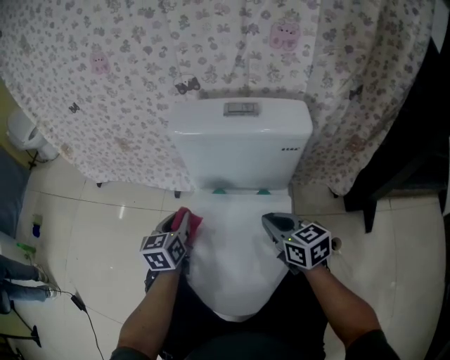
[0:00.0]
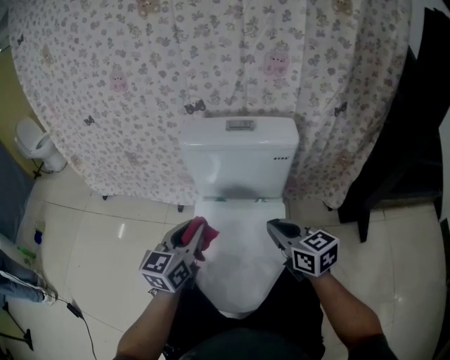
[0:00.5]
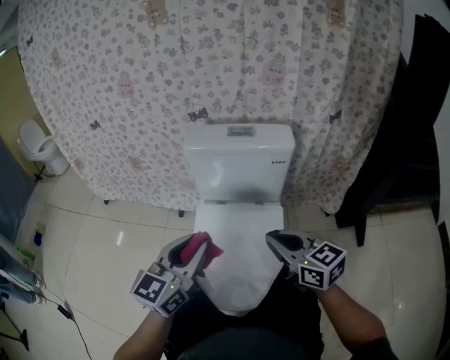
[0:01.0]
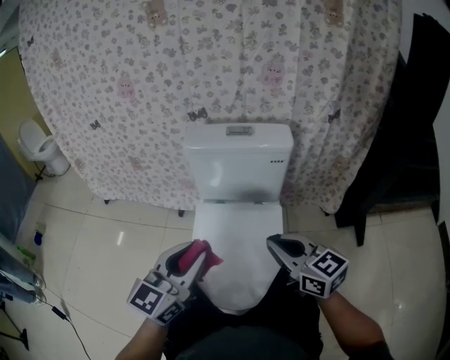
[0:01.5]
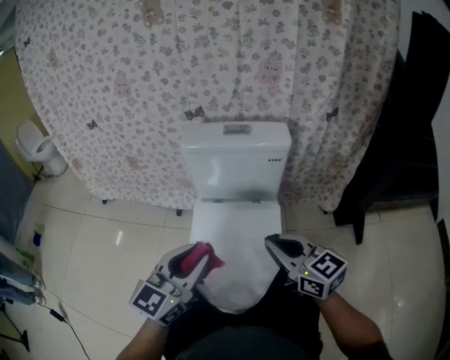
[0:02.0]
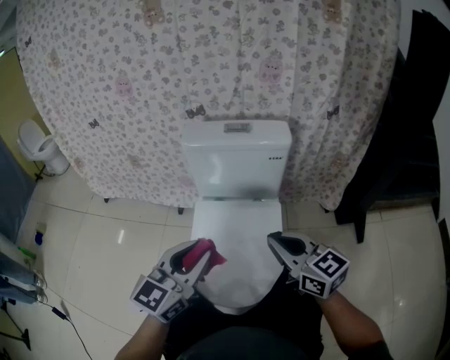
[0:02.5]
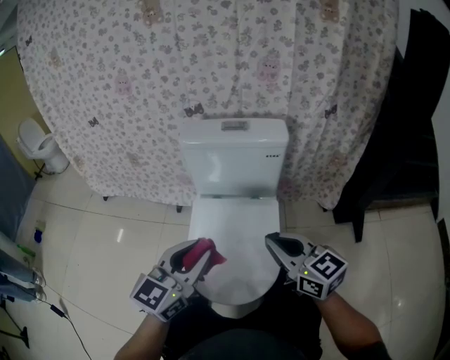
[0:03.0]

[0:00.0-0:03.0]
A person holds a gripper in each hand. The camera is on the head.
0:00.0 to 0:01.5: The left gripper is displaced backward and upward by approximately 30 cm, and turns by approximately 40 degrees. Meanwhile the right gripper moves upward and backward, approximately 20 cm.
0:01.5 to 0:03.0: The grippers stay close to where they were, moving slightly.

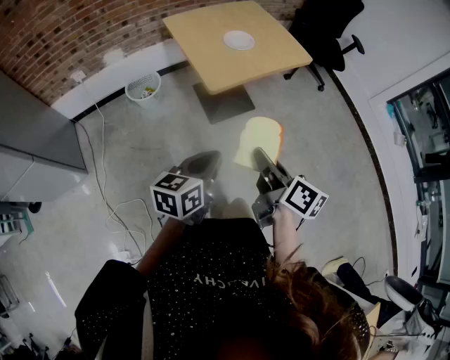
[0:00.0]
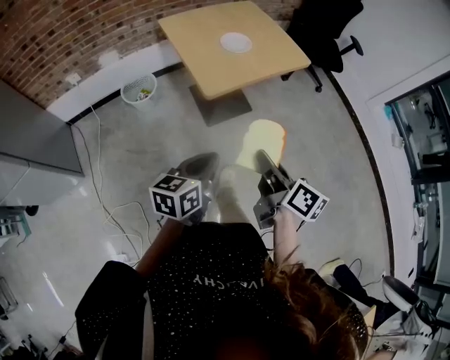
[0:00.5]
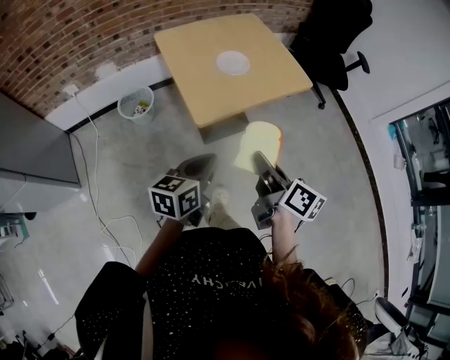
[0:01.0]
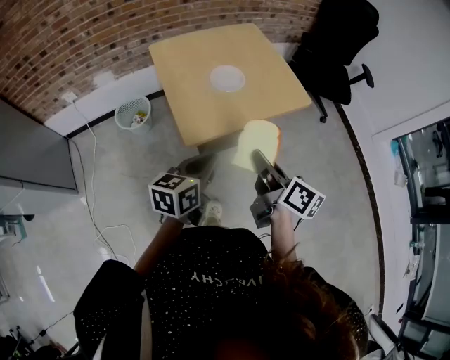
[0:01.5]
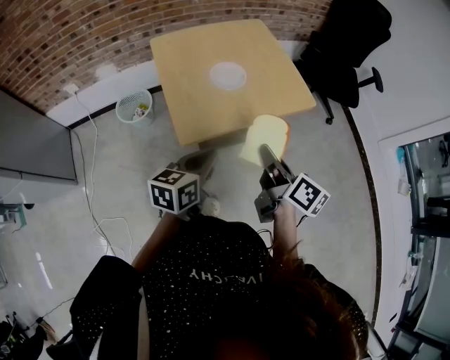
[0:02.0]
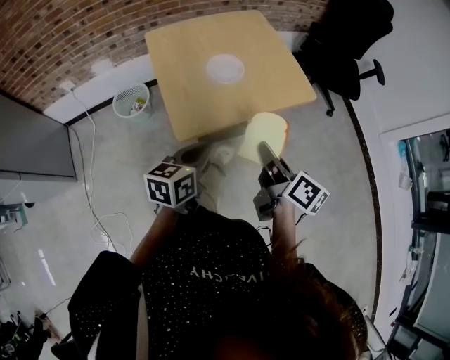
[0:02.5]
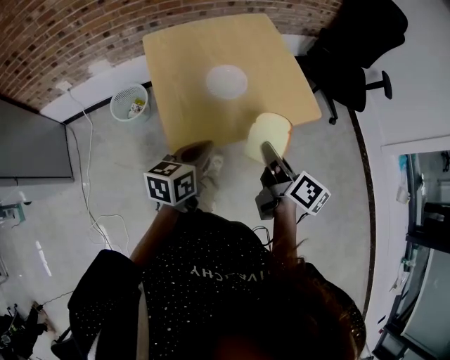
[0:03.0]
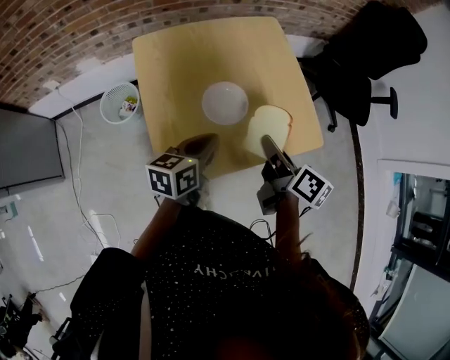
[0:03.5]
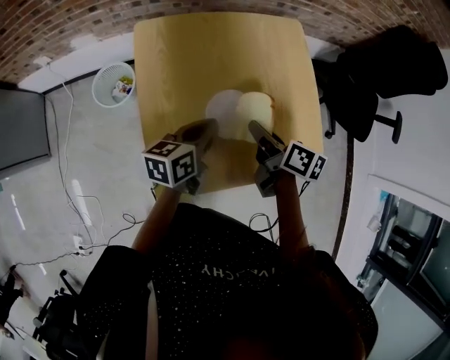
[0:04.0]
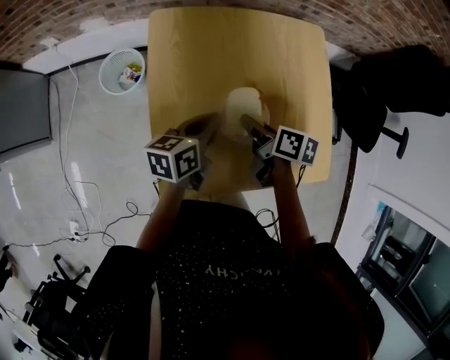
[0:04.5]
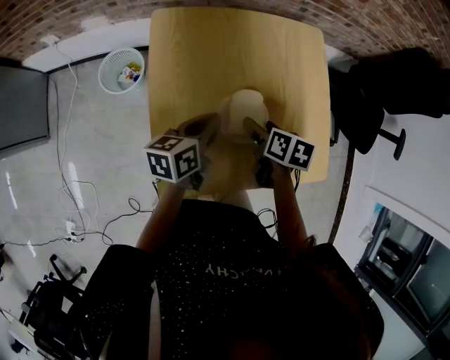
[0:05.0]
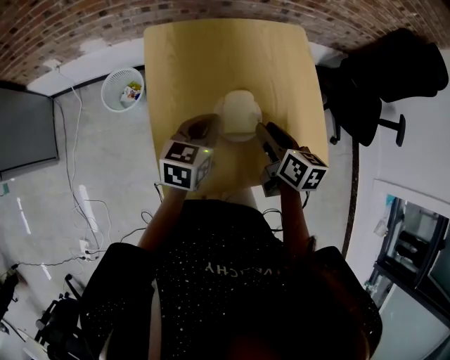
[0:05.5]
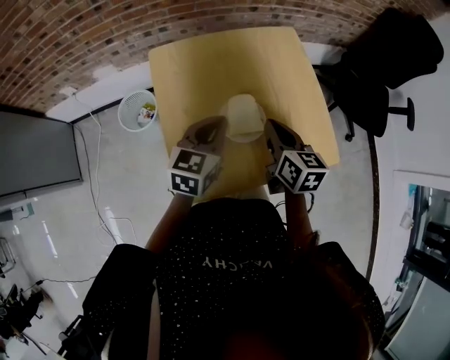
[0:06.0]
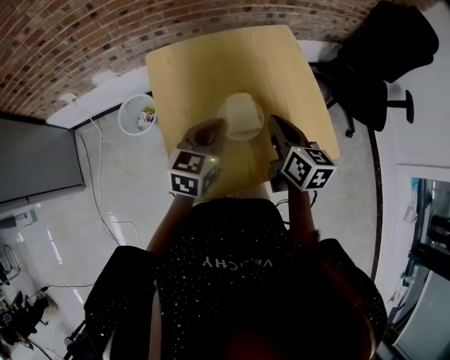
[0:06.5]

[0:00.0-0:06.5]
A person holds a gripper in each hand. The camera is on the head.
0:00.0 to 0:02.0: The two grippers go about 30 cm forward.
0:02.0 to 0:04.5: The left gripper shifts some 35 cm forward, and changes its angle by about 20 degrees; the right gripper is displaced forward and downward by approximately 40 cm, and swivels some 40 degrees.
0:04.5 to 0:06.5: The right gripper heads upward and to the right, covering roughly 15 cm, changes its angle by approximately 40 degrees, and opens, then closes again. Meanwhile the left gripper is displaced upward by about 10 cm, and turns by some 40 degrees.

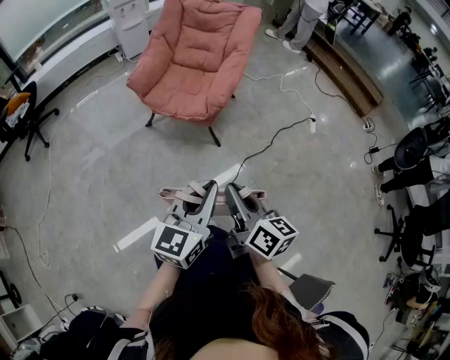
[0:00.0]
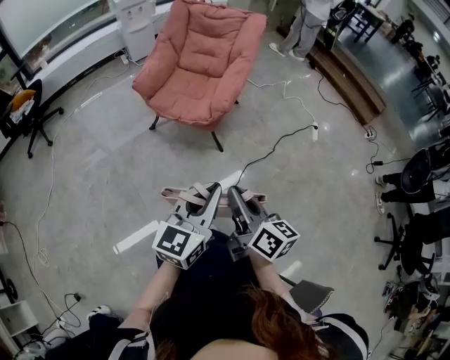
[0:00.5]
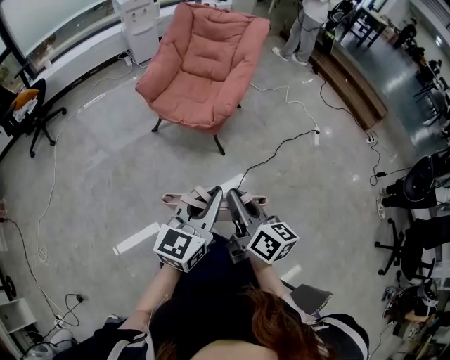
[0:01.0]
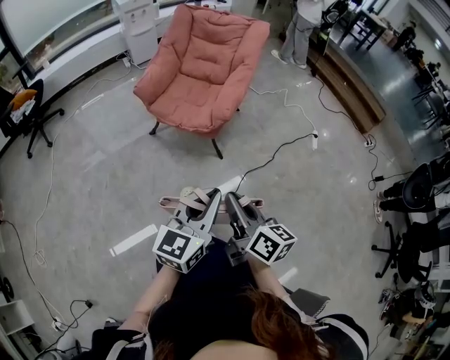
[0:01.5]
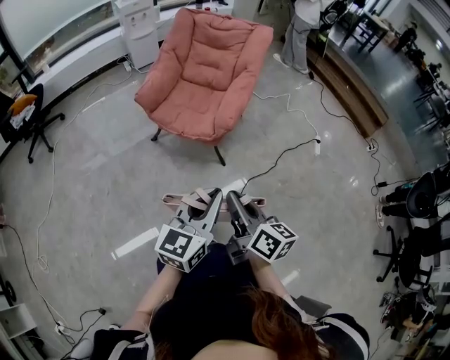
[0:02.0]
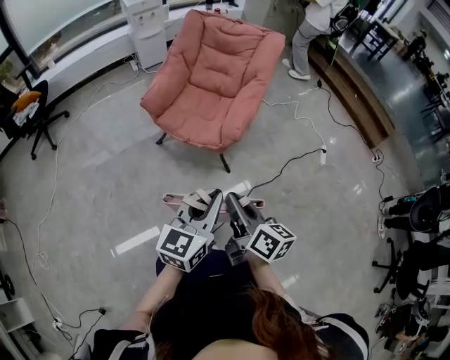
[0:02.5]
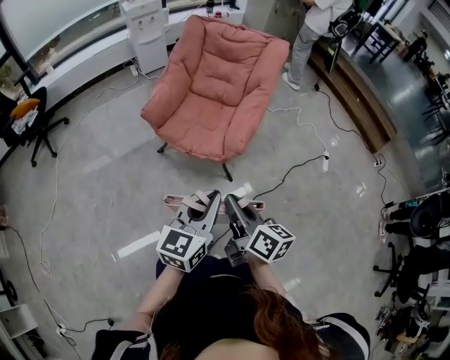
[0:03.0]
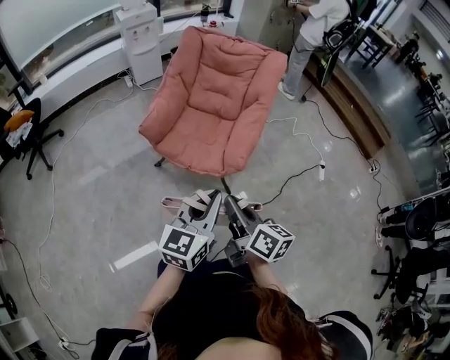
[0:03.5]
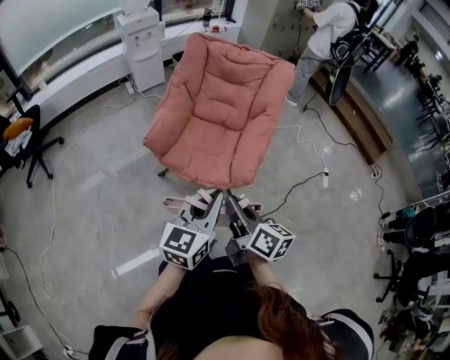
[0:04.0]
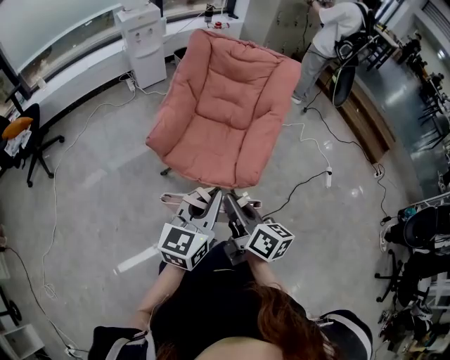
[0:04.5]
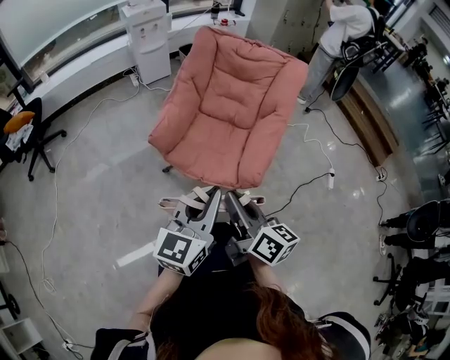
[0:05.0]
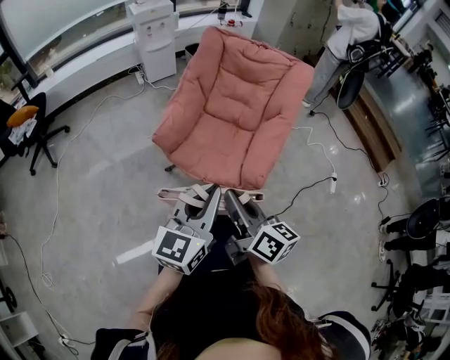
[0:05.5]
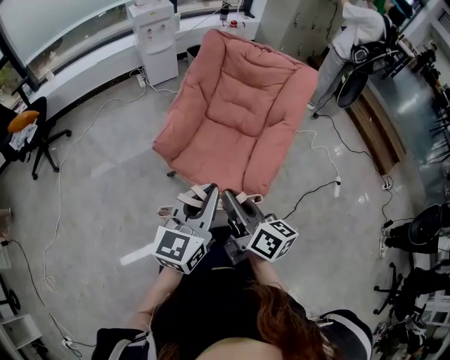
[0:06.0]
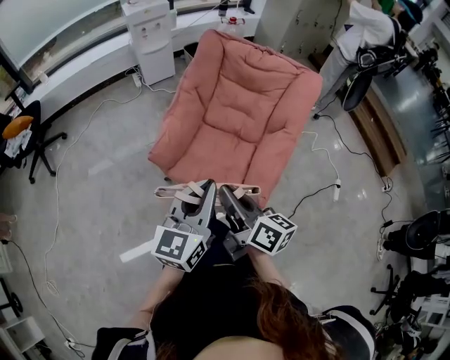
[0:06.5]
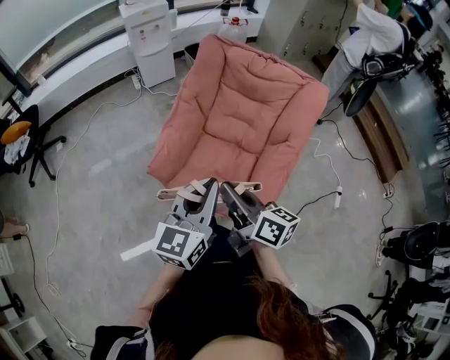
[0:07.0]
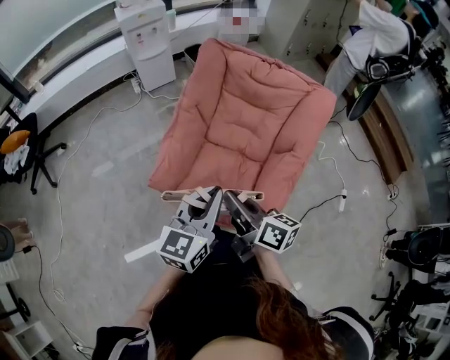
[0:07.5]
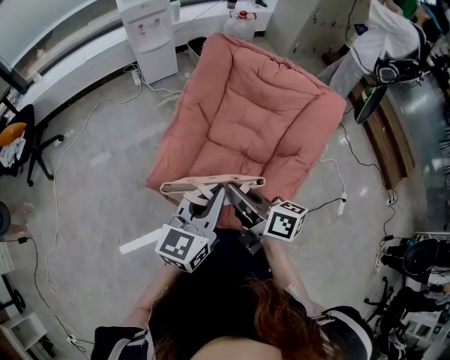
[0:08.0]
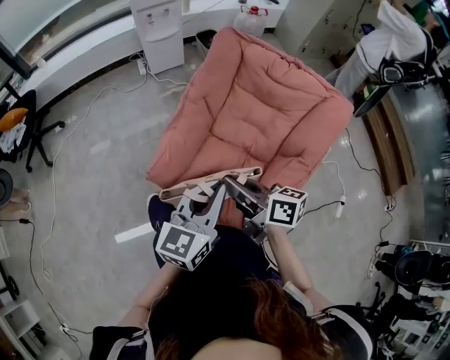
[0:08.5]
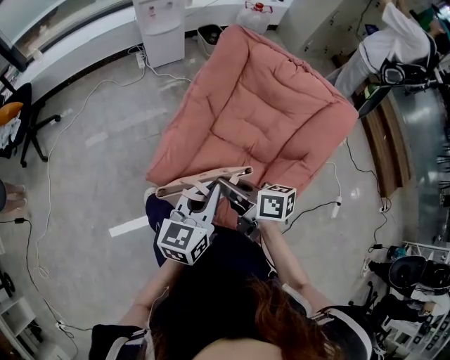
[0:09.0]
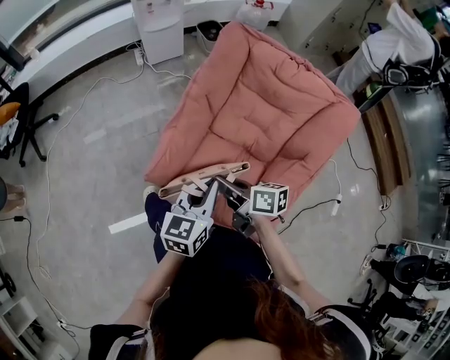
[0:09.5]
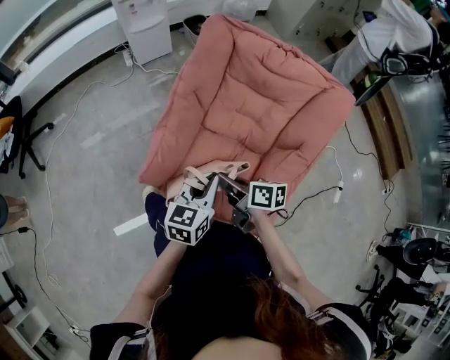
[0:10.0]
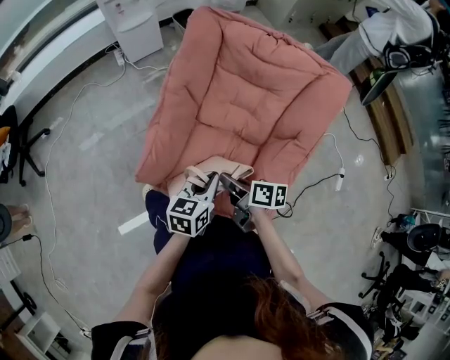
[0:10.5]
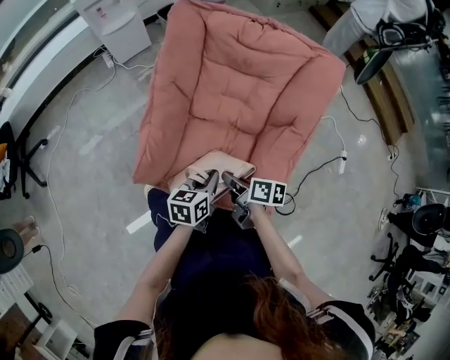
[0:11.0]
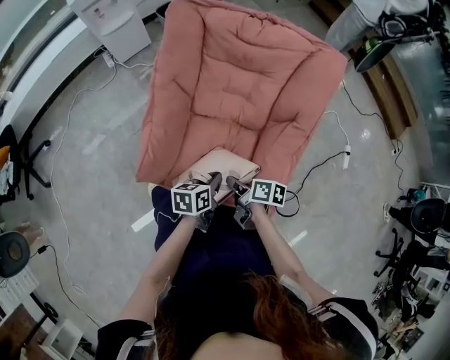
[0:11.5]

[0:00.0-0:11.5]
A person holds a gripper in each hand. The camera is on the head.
0:00.0 to 0:02.0: The grippers both shift forward by approximately 5 cm.
0:02.0 to 0:04.0: Both grippers move forward and to the left, approximately 30 cm.
0:04.0 to 0:06.0: The grippers both shift forward and to the left by about 10 cm.
0:06.0 to 0:07.5: The grippers both shift forward by approximately 25 cm.
0:07.5 to 0:09.5: The two grippers go about 15 cm downward and forward. The right gripper rotates roughly 20 degrees.
0:09.5 to 0:11.5: The two grippers go approximately 20 cm downward and to the right. The right gripper turns by roughly 40 degrees. Meanwhile the left gripper changes its angle by about 40 degrees.

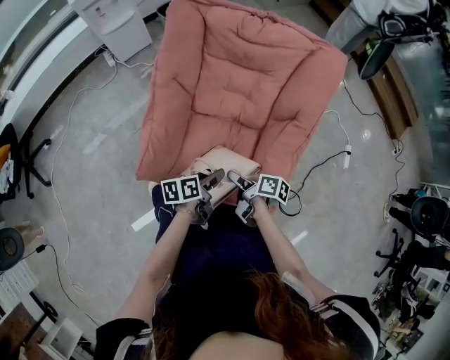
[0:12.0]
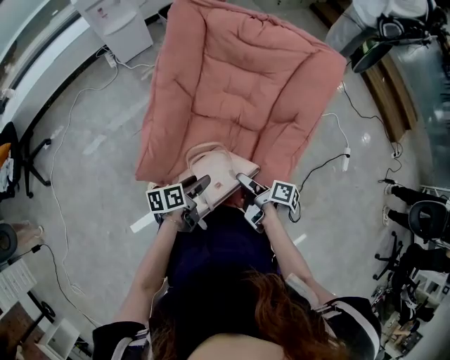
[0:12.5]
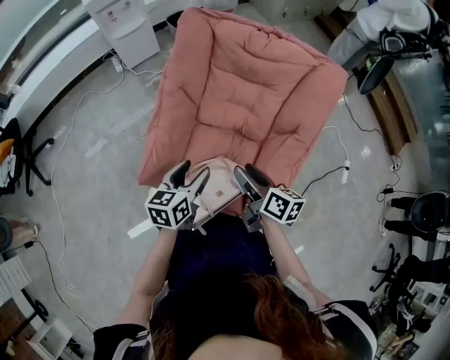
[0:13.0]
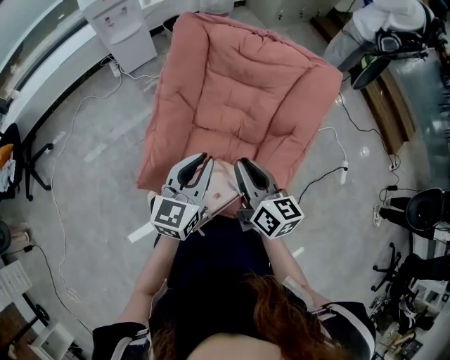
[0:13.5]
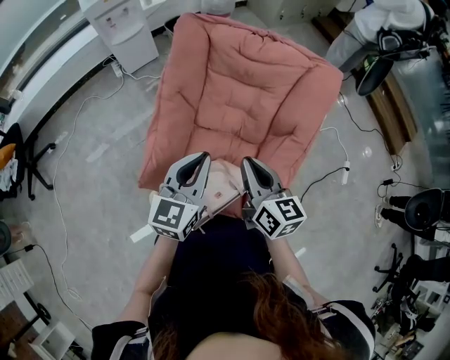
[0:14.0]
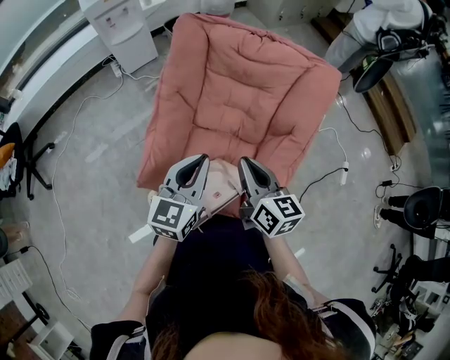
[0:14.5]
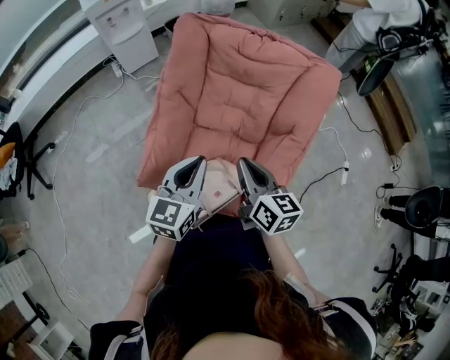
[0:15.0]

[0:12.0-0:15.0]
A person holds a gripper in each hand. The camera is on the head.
0:12.0 to 0:13.5: The grippers both shift upward by about 20 cm. The left gripper twists some 50 degrees clockwise, seen from behind, and closes up. The right gripper twists some 50 degrees counterclockwise, seen from behind, and closes its fingers.
0:13.5 to 0:15.0: The grippers make only small movements.

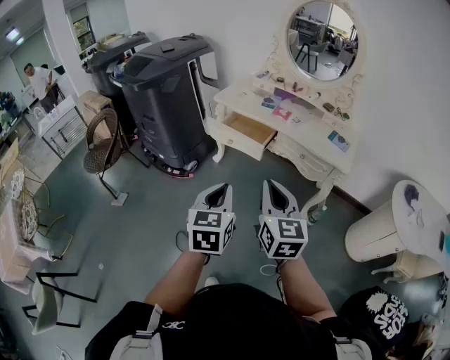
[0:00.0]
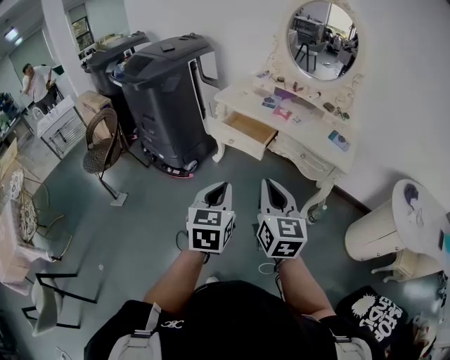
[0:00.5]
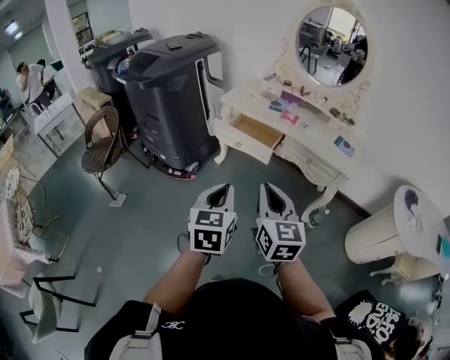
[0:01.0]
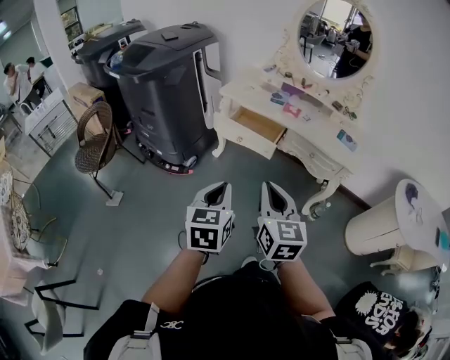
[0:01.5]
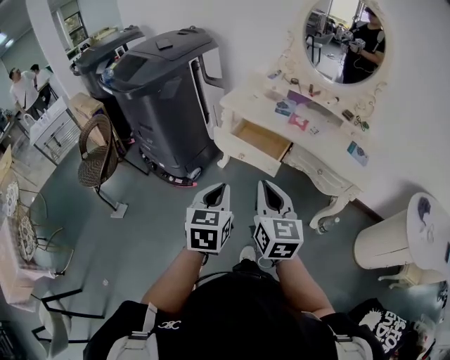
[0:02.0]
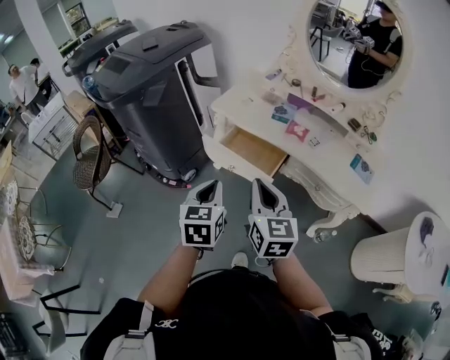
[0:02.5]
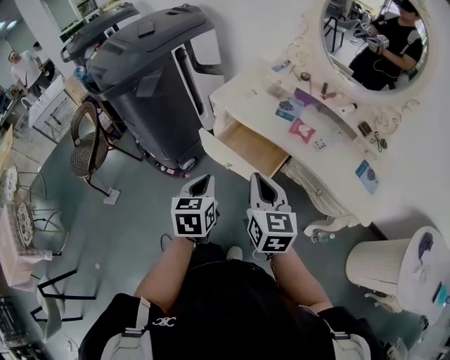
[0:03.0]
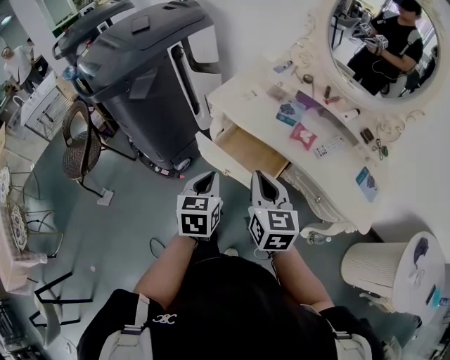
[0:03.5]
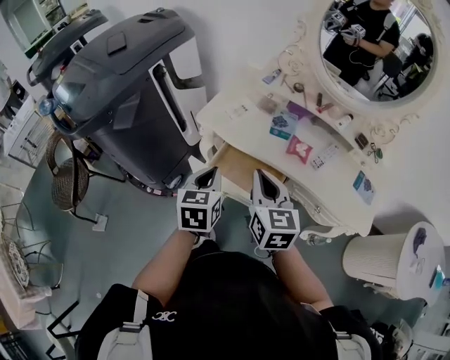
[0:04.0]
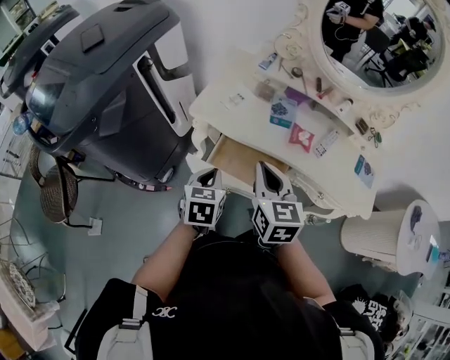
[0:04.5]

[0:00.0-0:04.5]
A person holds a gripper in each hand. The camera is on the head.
0:00.0 to 0:02.0: Both grippers move forward and to the left, approximately 20 cm.
0:02.0 to 0:04.5: Both grippers travel together forward, about 35 cm.
